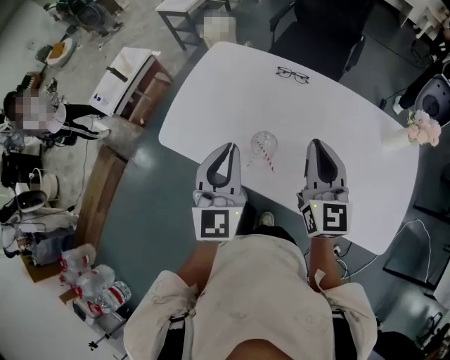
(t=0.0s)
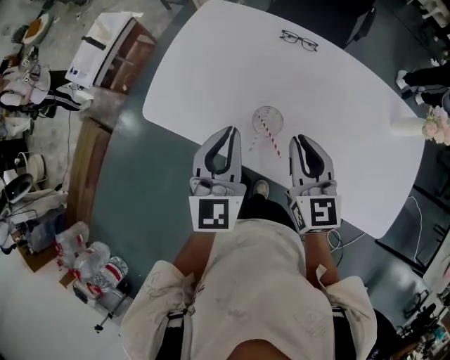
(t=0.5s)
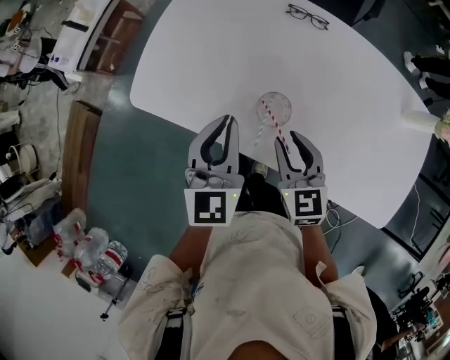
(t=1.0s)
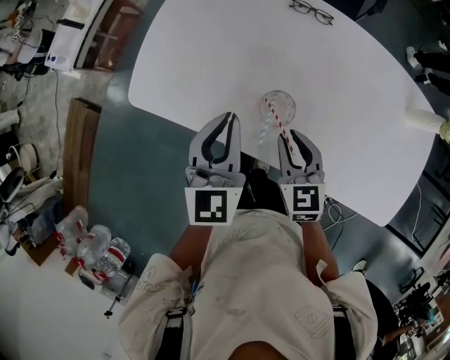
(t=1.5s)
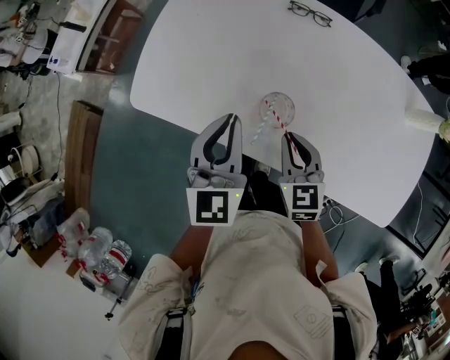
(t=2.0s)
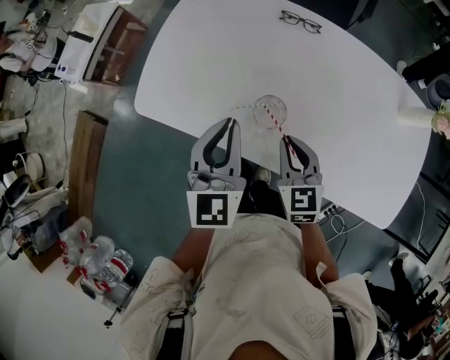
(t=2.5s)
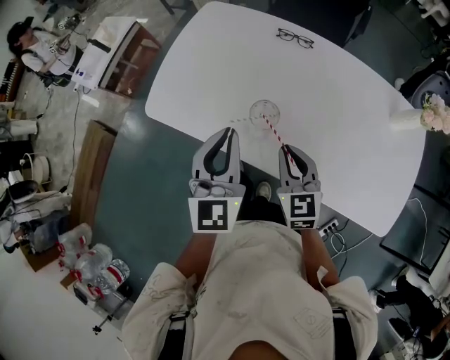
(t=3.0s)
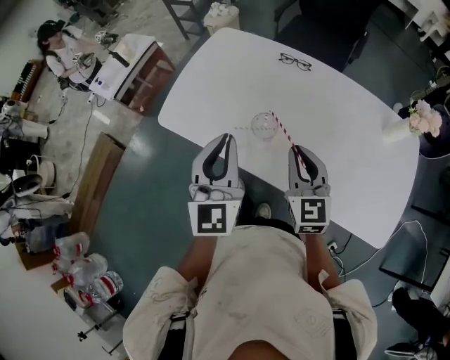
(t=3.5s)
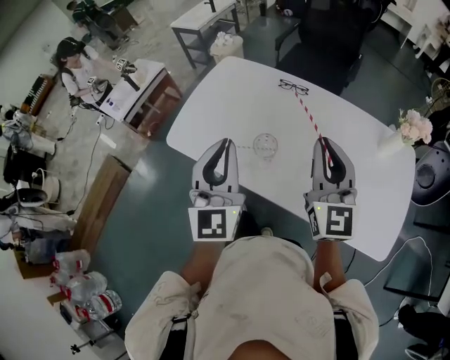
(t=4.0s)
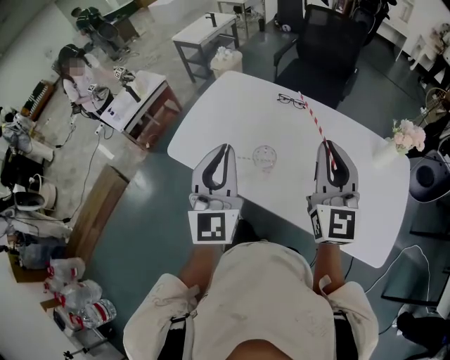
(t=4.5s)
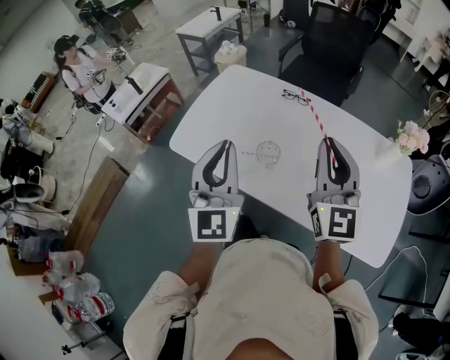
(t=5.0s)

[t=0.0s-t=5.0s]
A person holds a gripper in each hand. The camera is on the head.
t=0.0s to t=2.5s: The left gripper is displaced downward and forward by some 10 cm; the right gripper goes some 20 cm downward, tips its fingers downward by roughly 30 degrees, and opens, then closes again.
t=2.5s to t=5.0s: The left gripper travels upward and backward by roughly 20 cm, and turns by about 30 degrees. Meanwhile the right gripper goes some 30 cm upward, and angles its fingers upward, by approximately 40 degrees.

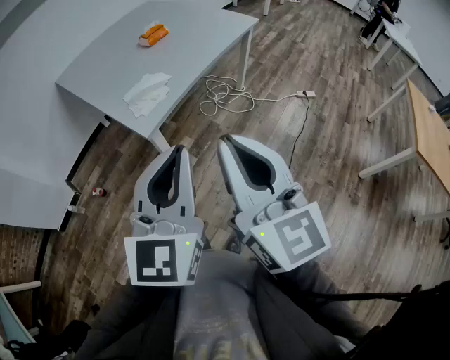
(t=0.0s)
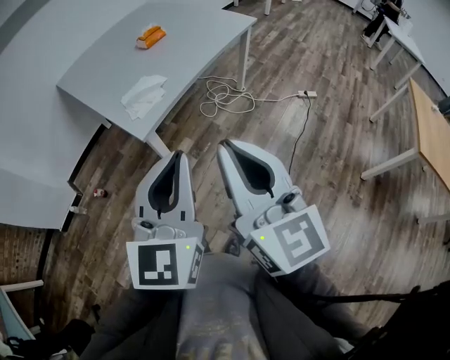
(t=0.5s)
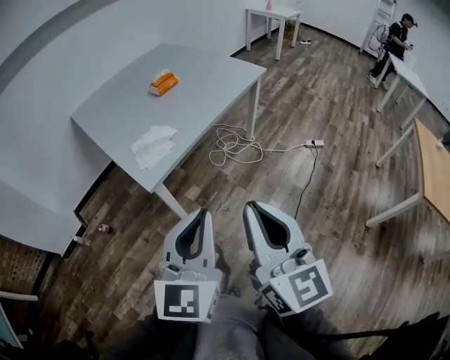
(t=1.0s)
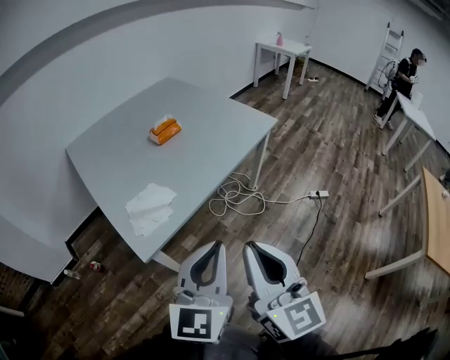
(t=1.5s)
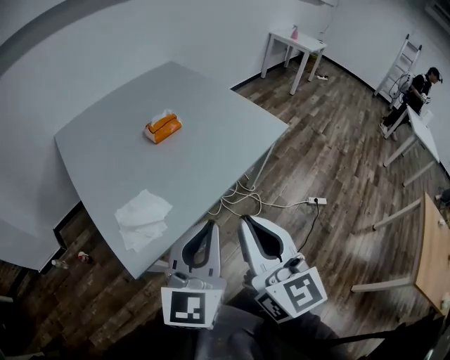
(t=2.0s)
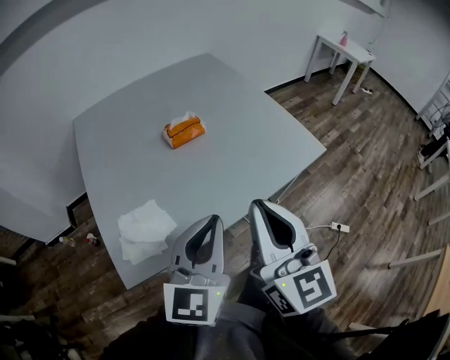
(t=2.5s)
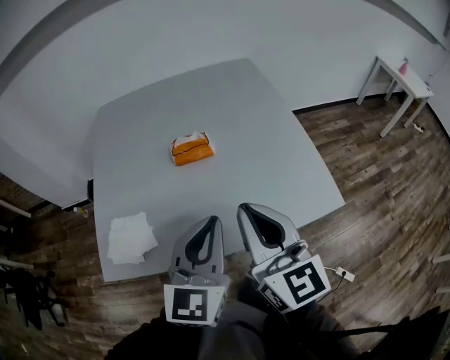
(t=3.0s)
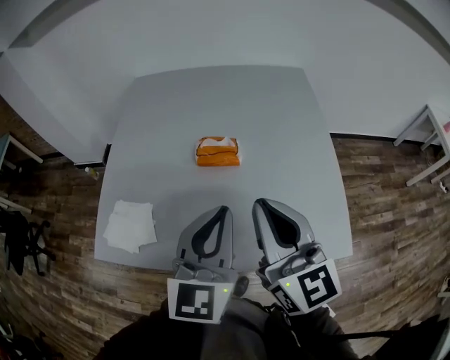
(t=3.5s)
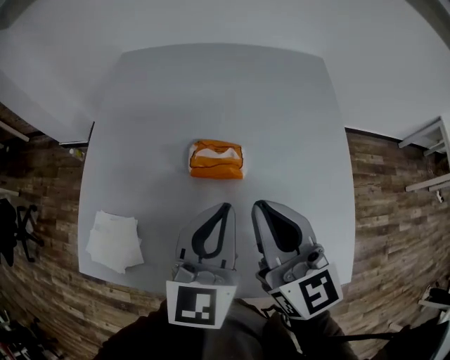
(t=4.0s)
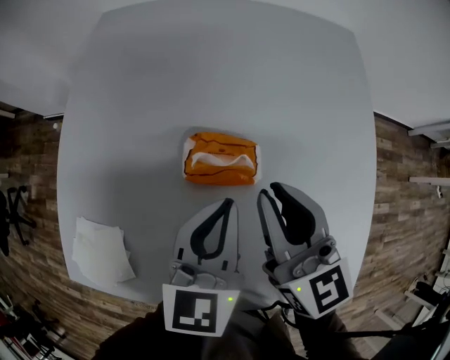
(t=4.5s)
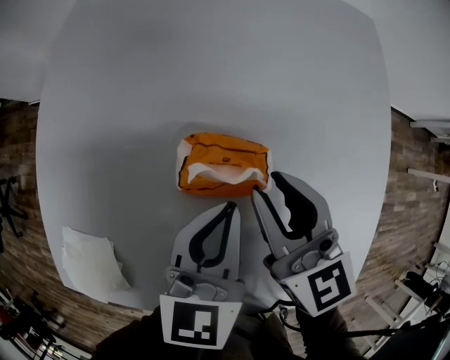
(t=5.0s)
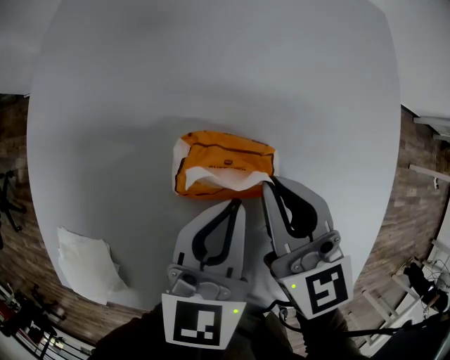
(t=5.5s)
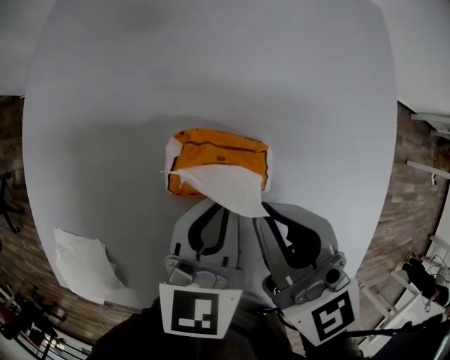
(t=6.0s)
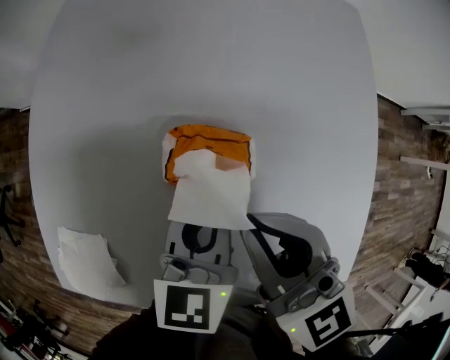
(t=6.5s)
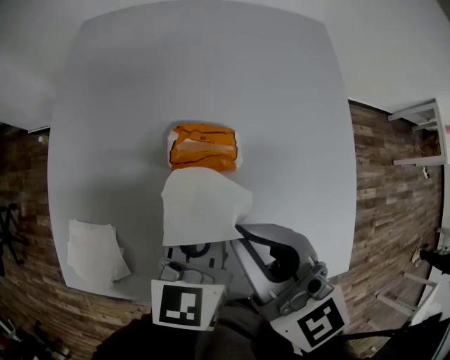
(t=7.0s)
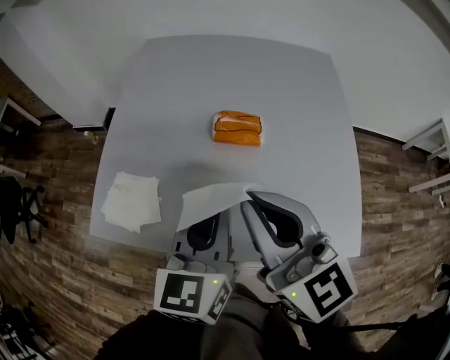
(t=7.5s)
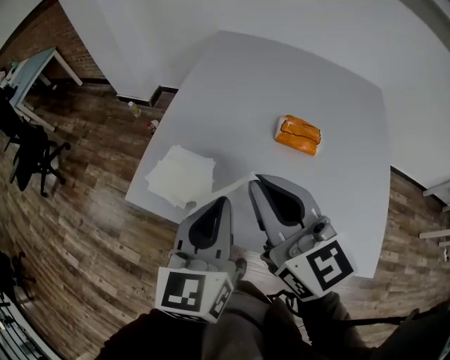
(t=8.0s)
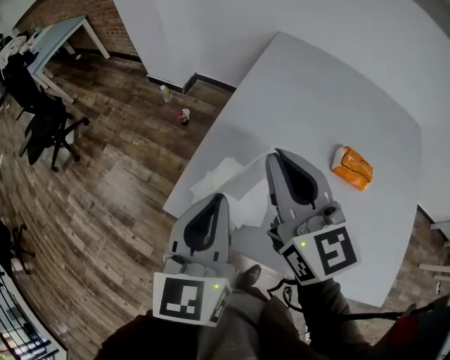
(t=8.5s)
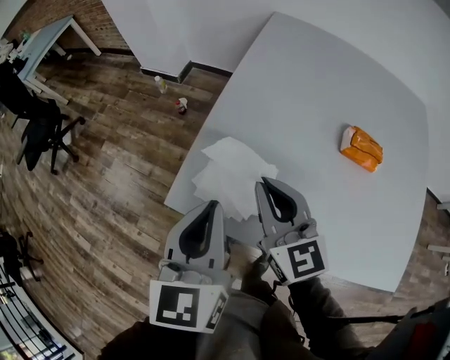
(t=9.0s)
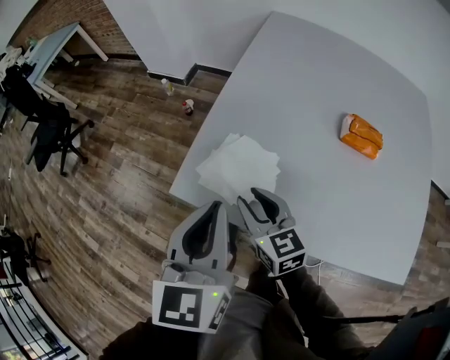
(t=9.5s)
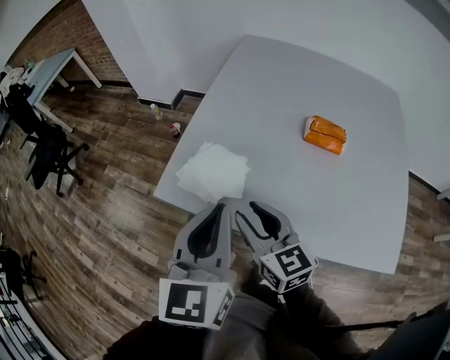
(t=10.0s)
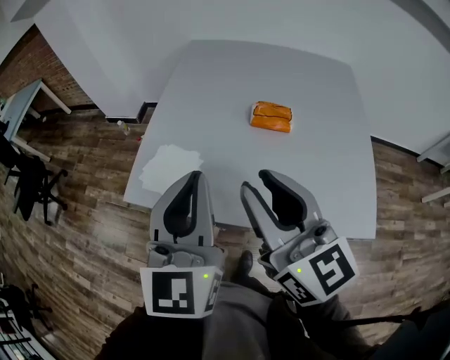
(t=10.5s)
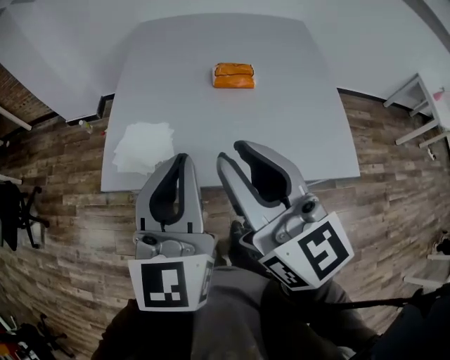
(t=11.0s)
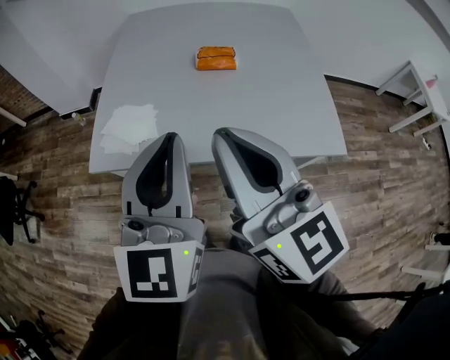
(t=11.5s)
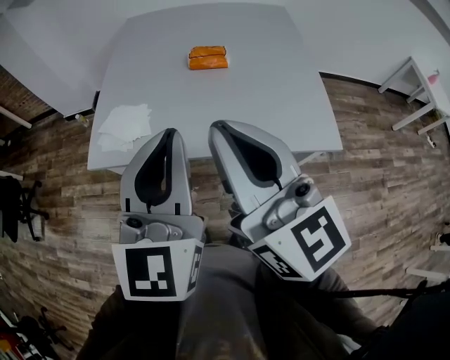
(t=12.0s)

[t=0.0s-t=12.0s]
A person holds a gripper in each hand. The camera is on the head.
t=0.0s to t=2.0s: Both grippers move forward, about 40 cm.
t=2.0s to t=4.0s: The two grippers travel together, roughly 50 cm. The left gripper changes its angle by approximately 50 degrees. The right gripper swivels approximately 50 degrees.
t=4.0s to t=6.0s: Both grippers travel together downward and forward, approximately 20 cm. The left gripper rotates some 20 degrees.
t=6.0s to t=8.0s: Both grippers travel together backward, to the left and upward, roughly 40 cm. The left gripper swivels approximately 30 degrees.
t=8.0s to t=10.0s: The right gripper travels downward and to the left by some 20 cm, and opens up, while the left gripper heads to the left, covering roughly 10 cm.
t=10.0s to t=12.0s: The left gripper is displaced backward, to the right and upward by approximately 25 cm, and changes its angle by approximately 30 degrees. The right gripper heads upward, backward and to the right, covering approximately 35 cm, changes its angle by some 30 degrees, and closes up.

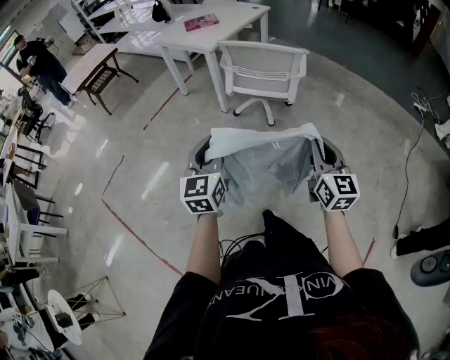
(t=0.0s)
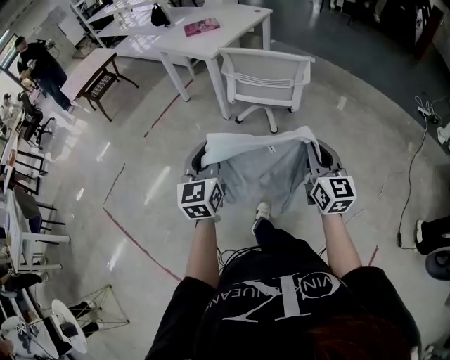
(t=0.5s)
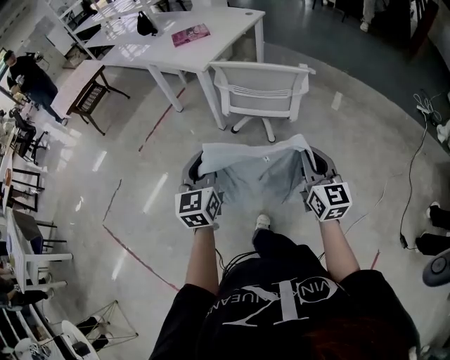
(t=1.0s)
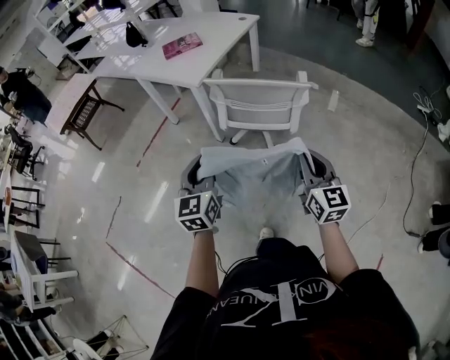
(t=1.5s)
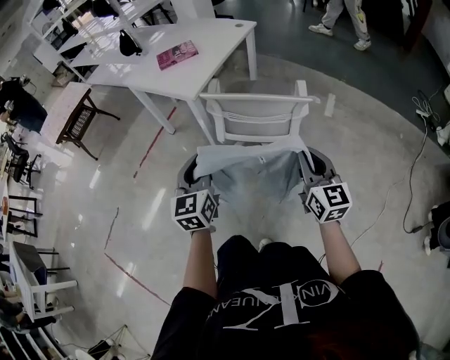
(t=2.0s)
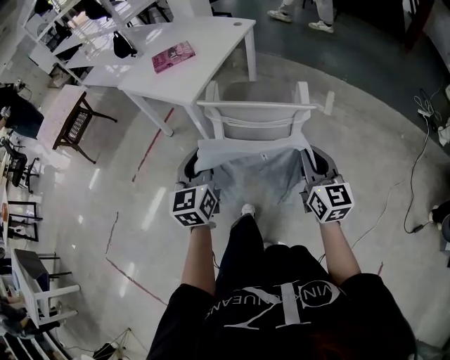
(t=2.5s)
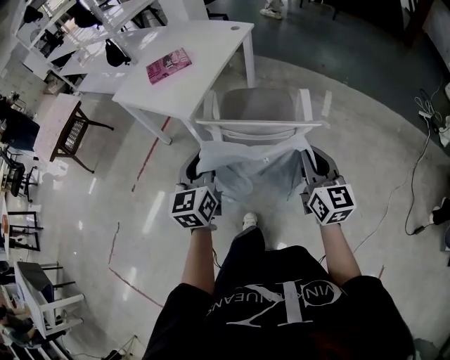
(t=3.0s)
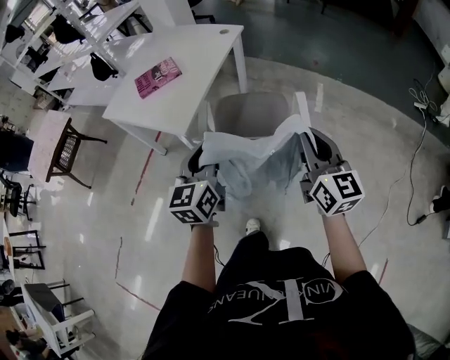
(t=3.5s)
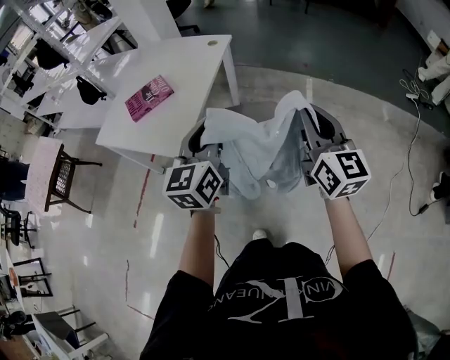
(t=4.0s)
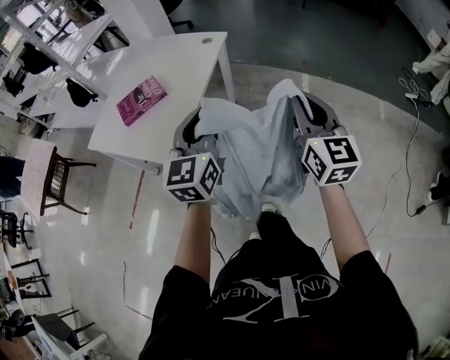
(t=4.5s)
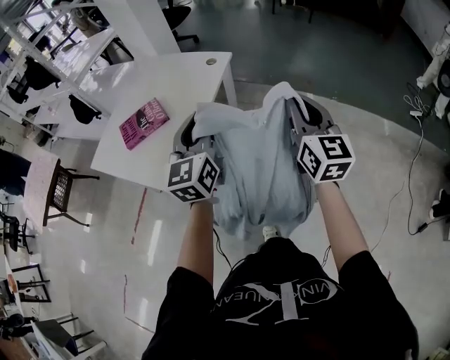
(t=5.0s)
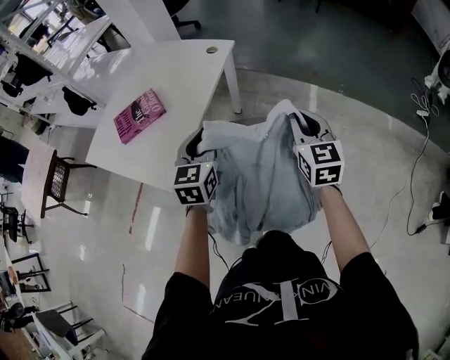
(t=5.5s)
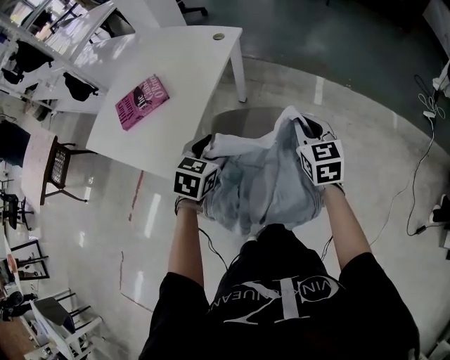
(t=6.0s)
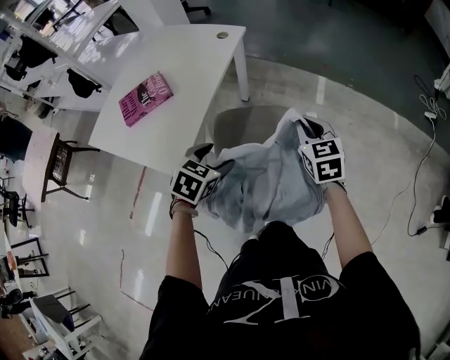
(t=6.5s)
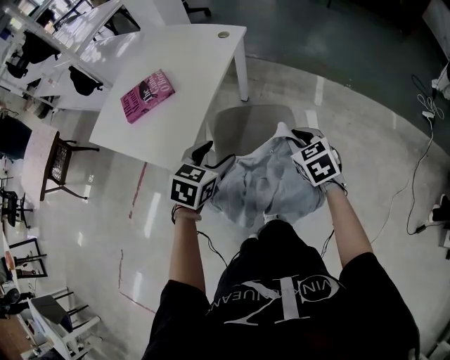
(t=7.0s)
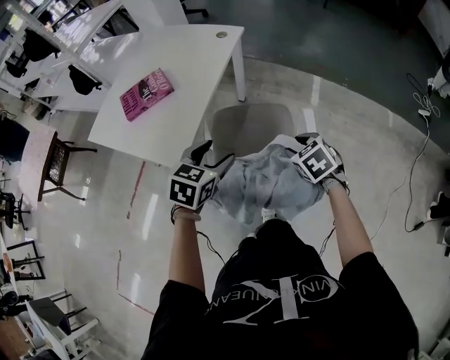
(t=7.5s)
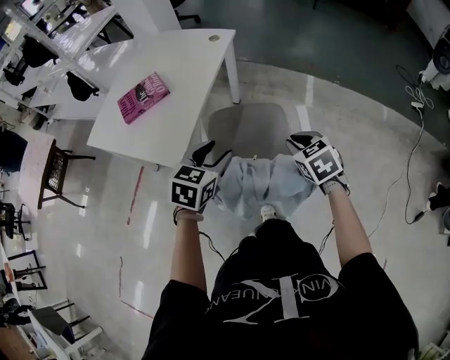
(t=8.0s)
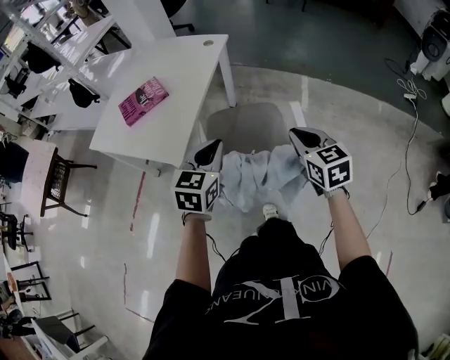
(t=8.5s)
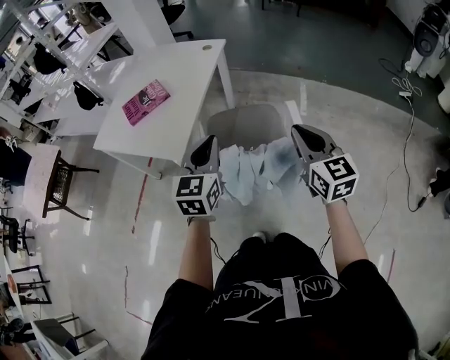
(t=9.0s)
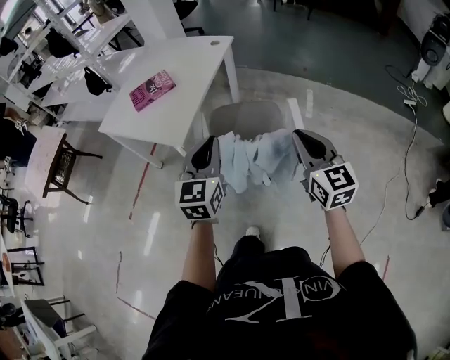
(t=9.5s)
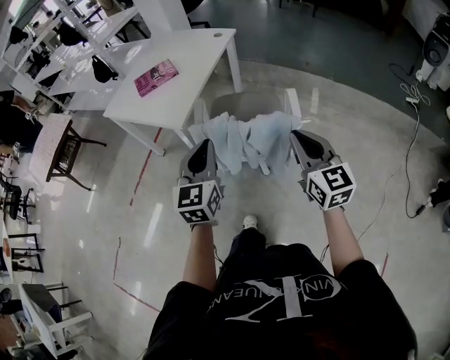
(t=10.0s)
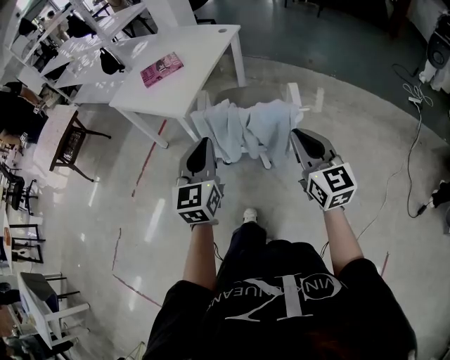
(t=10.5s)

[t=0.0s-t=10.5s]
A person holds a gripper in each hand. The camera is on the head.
t=0.0s to t=2.0s: Both grippers move forward, some 30 cm.
t=2.0s to t=4.0s: The right gripper heads forward and upward, covering roughly 30 cm, while the left gripper heads forward, covering about 30 cm, and turns by roughly 20 degrees.
t=4.0s to t=6.5s: The right gripper travels forward and downward by about 25 cm, and angles its fingers downward, by some 30 degrees. Meanwhile the left gripper travels downward and forward by some 20 cm, points its fingers roughly 50 degrees further downward, and opens its fingers.
t=6.5s to t=8.5s: The left gripper shifts roughly 10 cm upward and backward, changes its angle by some 30 degrees, and closes up. The right gripper shifts about 15 cm backward, and opens, then closes again.
t=8.5s to t=10.5s: The two grippers go approximately 25 cm backward. The left gripper turns by roughly 30 degrees; the right gripper changes its angle by about 20 degrees.
